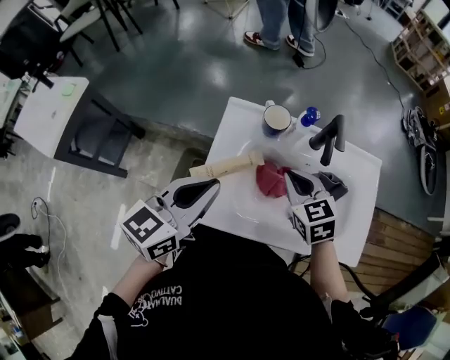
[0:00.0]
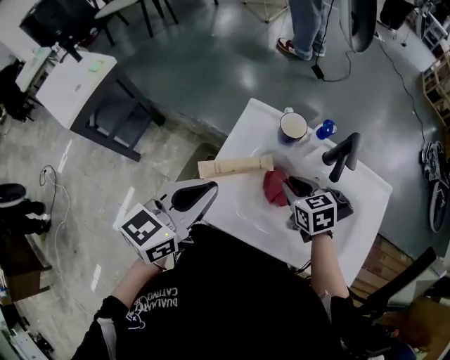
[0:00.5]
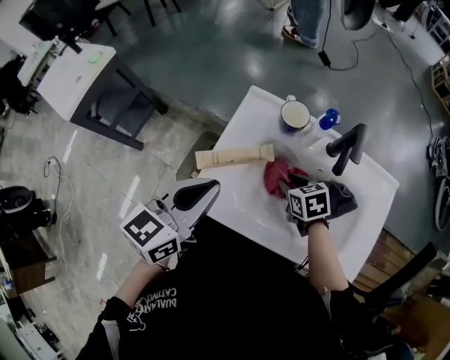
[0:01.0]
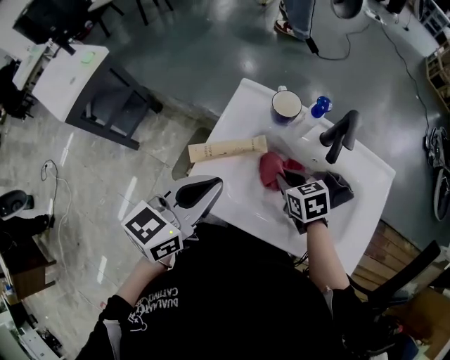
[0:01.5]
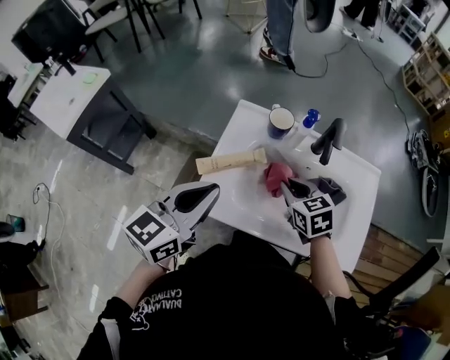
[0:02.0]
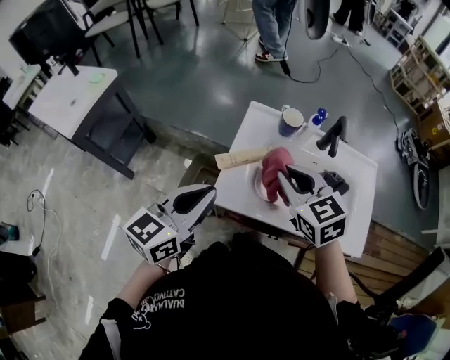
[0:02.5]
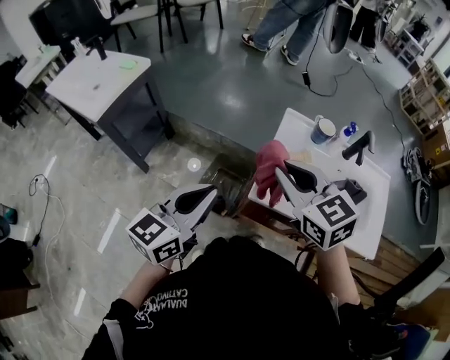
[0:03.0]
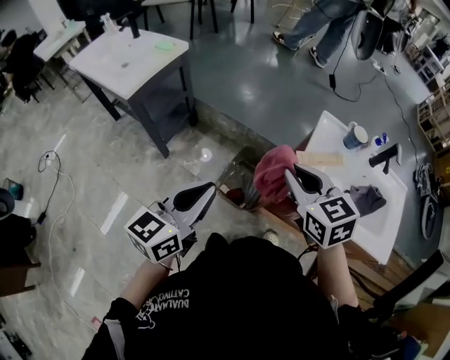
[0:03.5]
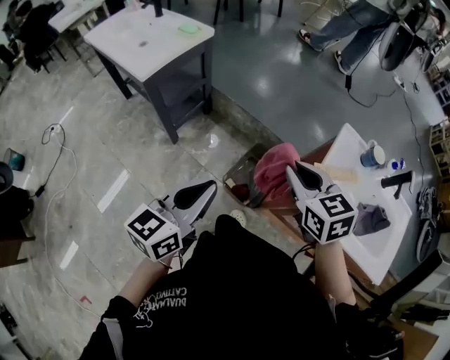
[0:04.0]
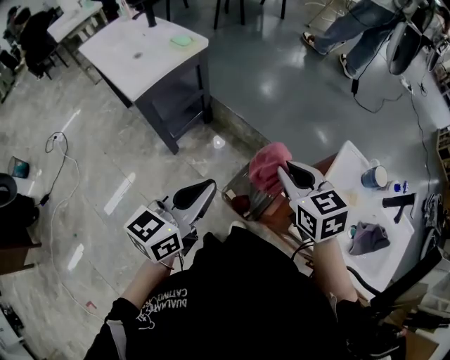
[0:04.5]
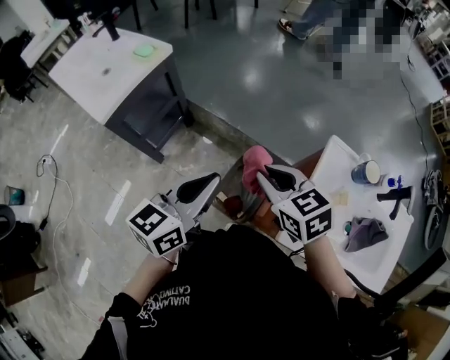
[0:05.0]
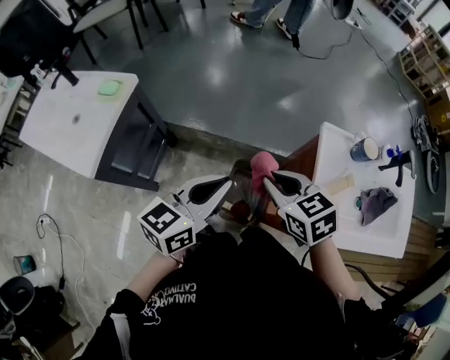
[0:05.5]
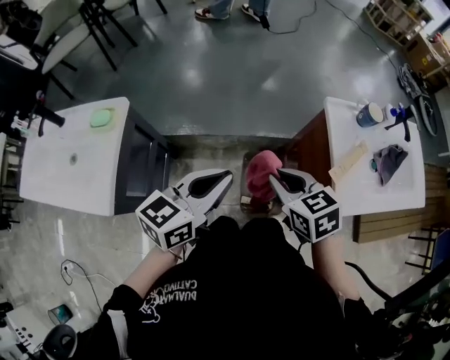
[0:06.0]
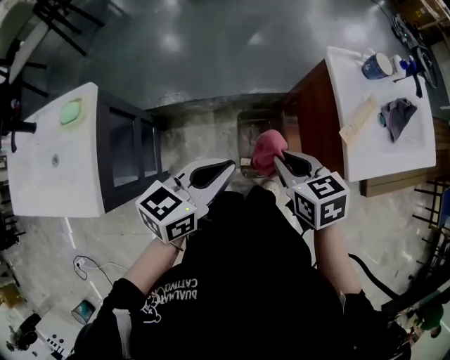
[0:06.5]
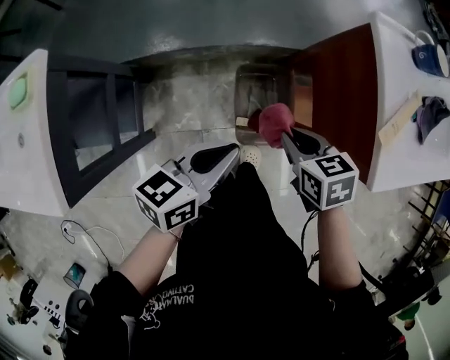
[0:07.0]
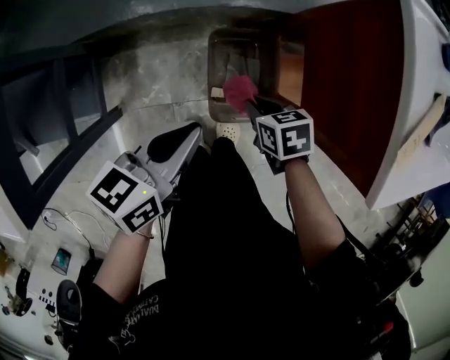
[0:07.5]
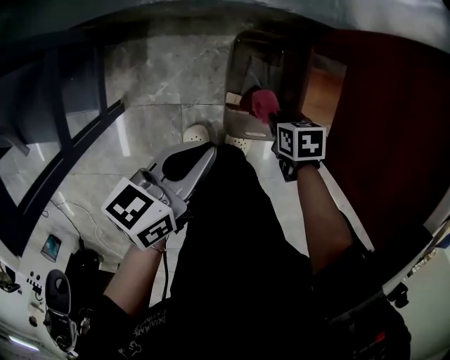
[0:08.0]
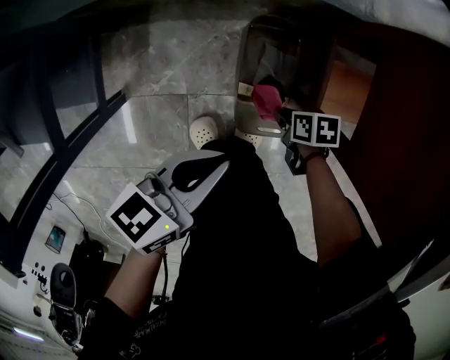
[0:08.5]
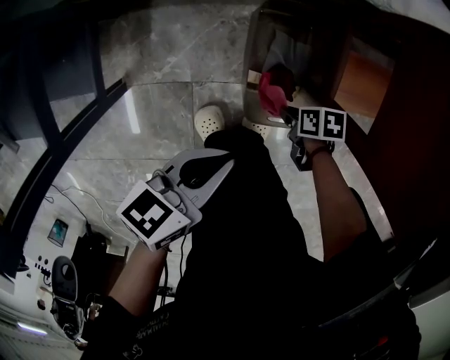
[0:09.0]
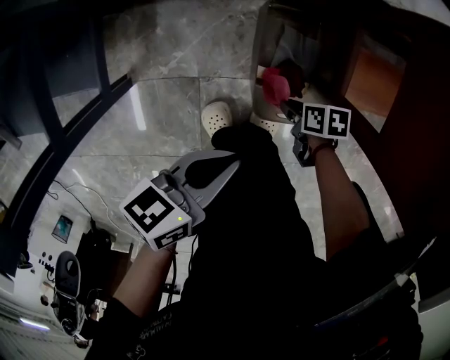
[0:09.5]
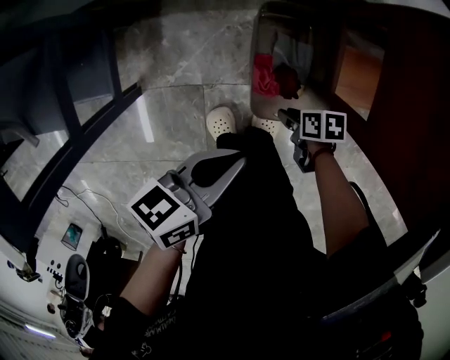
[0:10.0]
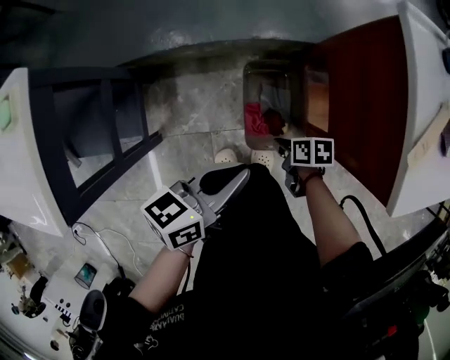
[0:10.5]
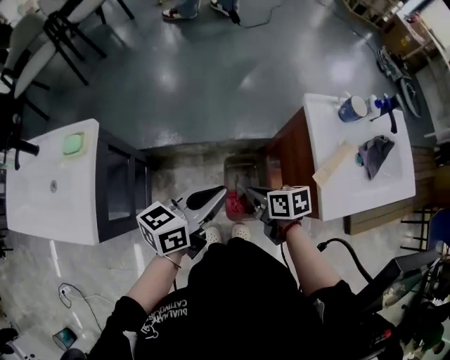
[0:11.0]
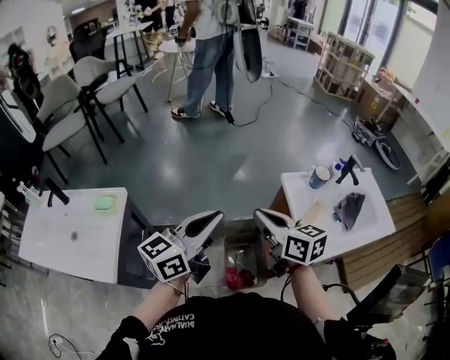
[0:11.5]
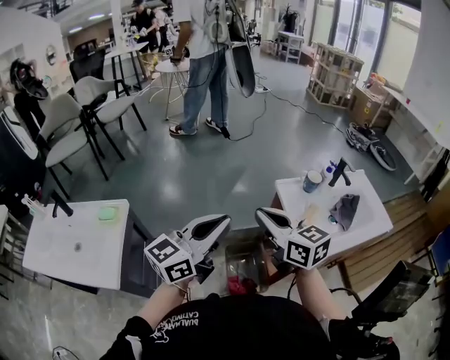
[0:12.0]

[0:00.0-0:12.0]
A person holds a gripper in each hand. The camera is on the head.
0:00.0 to 0:02.0: The left gripper goes about 5 cm backward, while the right gripper travels downward and back again, some 15 cm each way.
0:02.0 to 0:04.0: The grippers both shift to the left by approximately 40 cm. The left gripper turns by approximately 20 degrees.
0:04.0 to 0:06.0: The left gripper shifts by roughly 30 cm, and changes its angle by roughly 40 degrees. Meanwhile the right gripper moves roughly 20 cm, and changes its angle by roughly 30 degrees.
0:06.0 to 0:08.0: The two grippers go some 50 cm downward. The left gripper swivels some 30 degrees; the right gripper points its fingers roughly 30 degrees further downward.
0:08.0 to 0:10.0: The right gripper moves some 10 cm, and rotates some 20 degrees.
0:10.0 to 0:12.0: Both grippers move upward, approximately 70 cm. The left gripper angles its fingers upward, by roughly 40 degrees; the right gripper tilts its fingers about 50 degrees upward, and closes up.

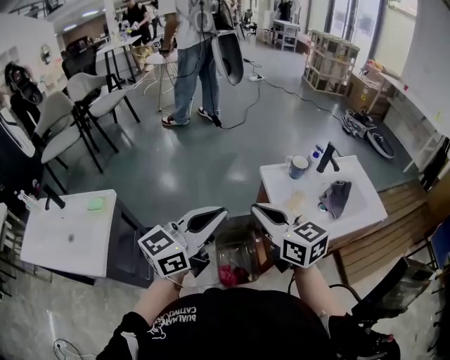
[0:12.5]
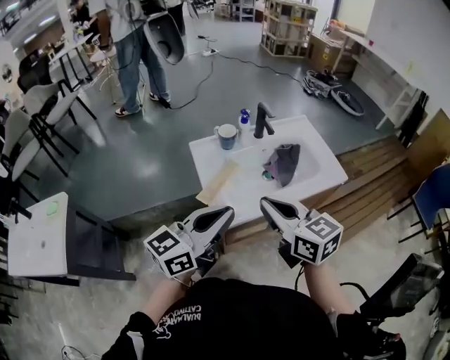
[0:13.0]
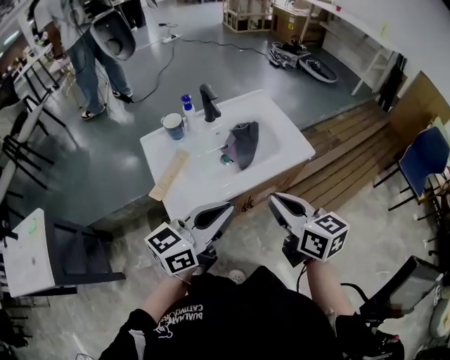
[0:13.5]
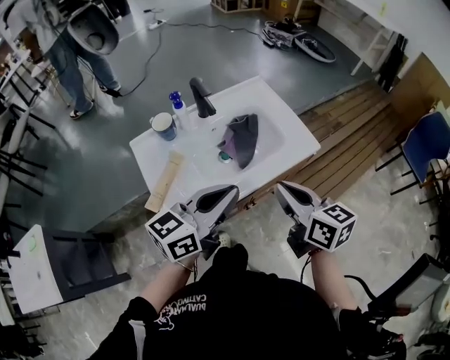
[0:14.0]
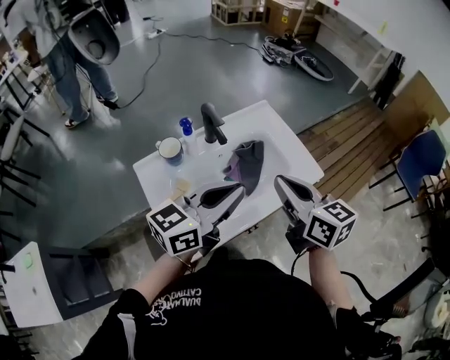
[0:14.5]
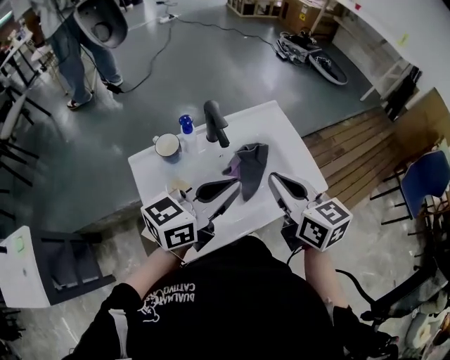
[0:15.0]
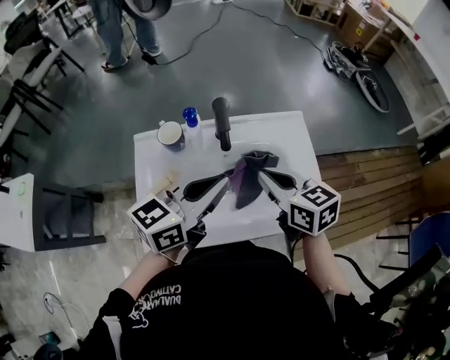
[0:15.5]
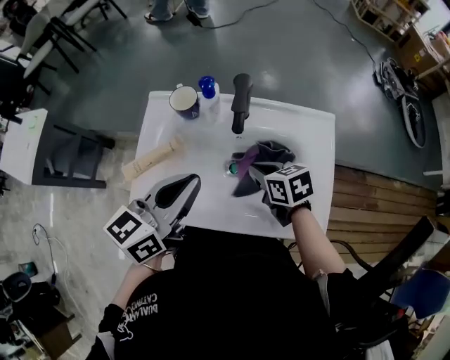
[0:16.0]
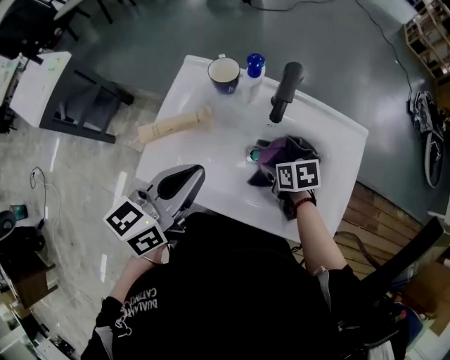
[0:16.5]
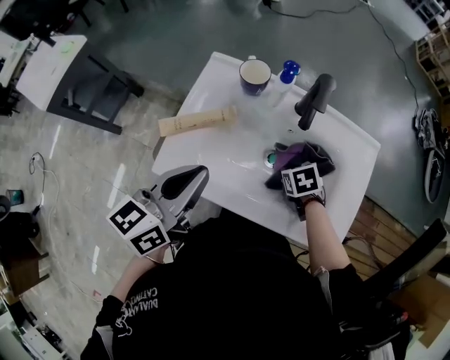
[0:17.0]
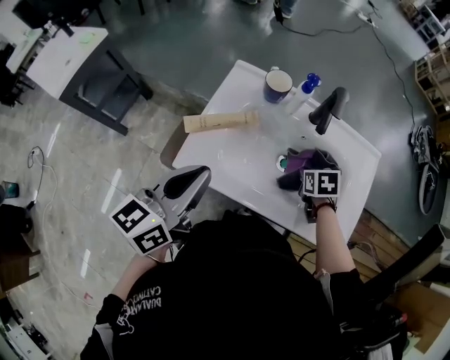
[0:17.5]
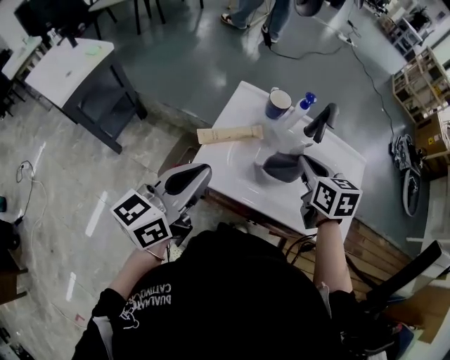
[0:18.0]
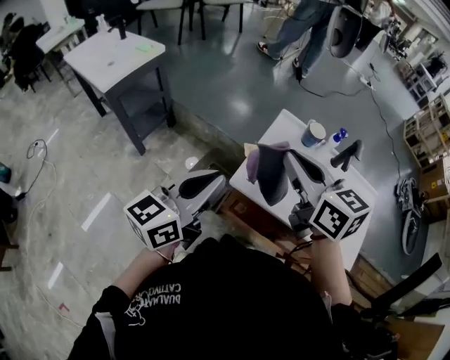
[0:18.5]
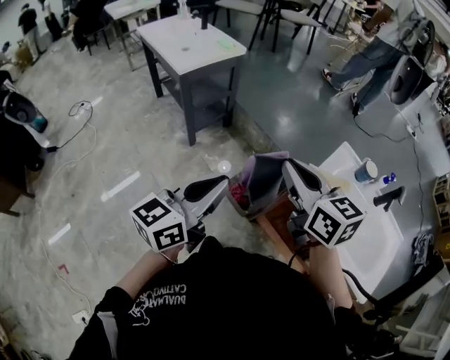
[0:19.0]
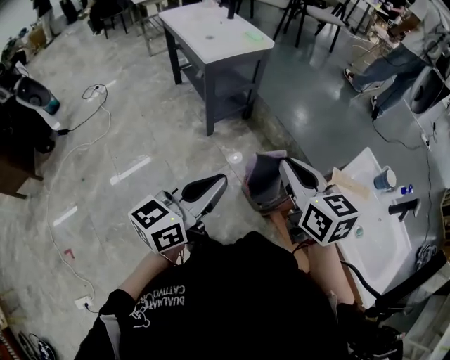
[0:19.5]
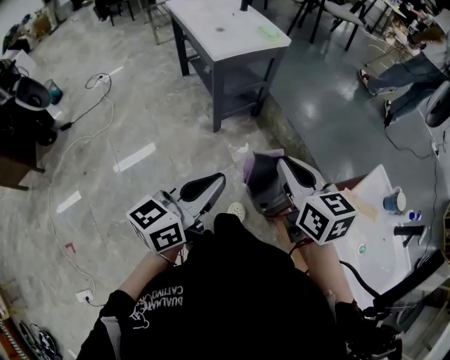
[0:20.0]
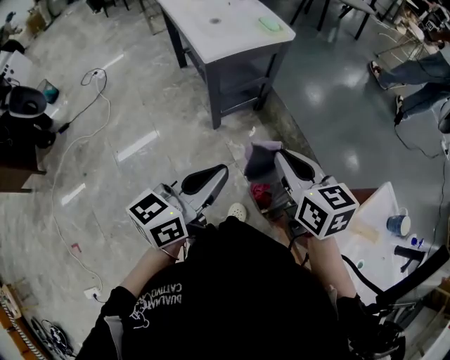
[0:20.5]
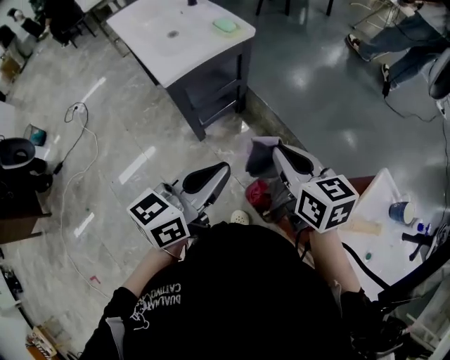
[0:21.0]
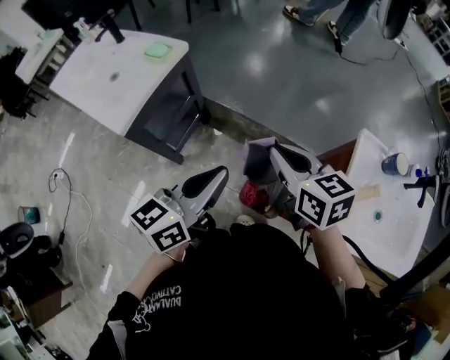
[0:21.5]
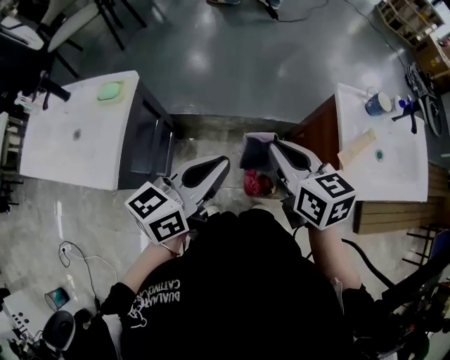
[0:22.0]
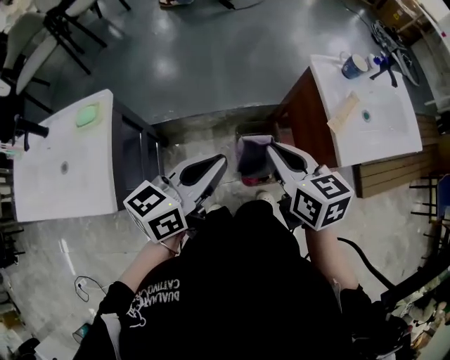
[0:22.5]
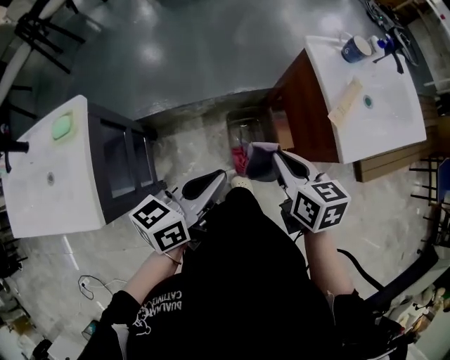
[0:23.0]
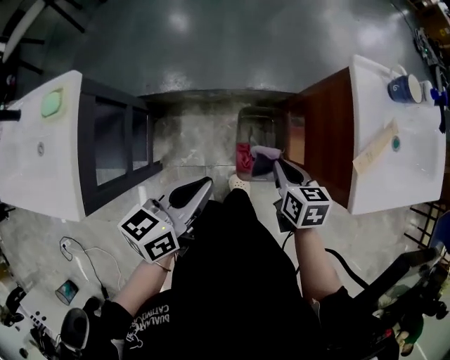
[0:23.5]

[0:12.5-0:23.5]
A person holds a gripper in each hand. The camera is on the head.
0:12.5 to 0:14.5: The two grippers travel together, about 50 cm. The right gripper changes its angle by roughly 30 degrees, while the left gripper changes its angle by about 30 degrees.
0:14.5 to 0:16.0: The right gripper is displaced downward by some 20 cm, and swivels about 60 degrees; the left gripper heads downward, covering roughly 5 cm, and swivels about 50 degrees.
0:16.0 to 0:18.0: The right gripper travels upward and to the left by approximately 15 cm, rotates about 20 degrees, and opens, then closes once more; the left gripper goes roughly 20 cm to the left and backward.
0:18.0 to 0:20.0: Both grippers are carried roughly 50 cm. The right gripper turns by about 40 degrees. Meanwhile the left gripper rotates about 30 degrees.
0:20.0 to 0:21.5: The right gripper changes place by approximately 25 cm, and changes its angle by some 30 degrees, while the left gripper changes place by approximately 30 cm, and changes its angle by roughly 30 degrees.
0:21.5 to 0:23.5: The right gripper goes approximately 25 cm downward, and changes its angle by about 50 degrees; the left gripper shifts approximately 20 cm downward, and rotates some 40 degrees.

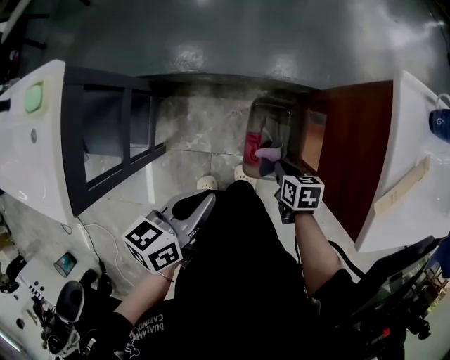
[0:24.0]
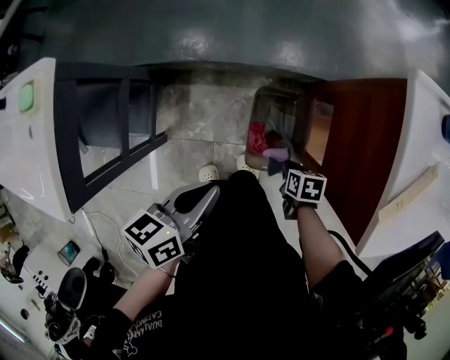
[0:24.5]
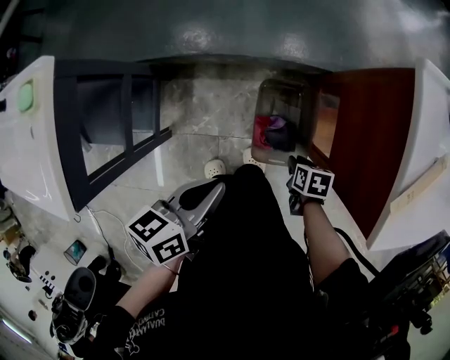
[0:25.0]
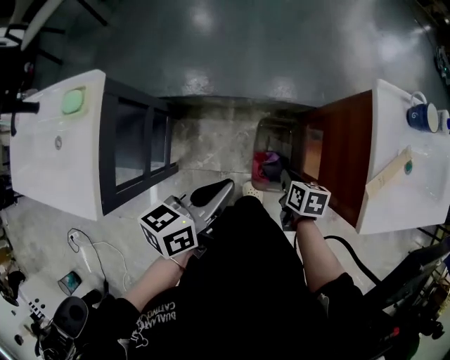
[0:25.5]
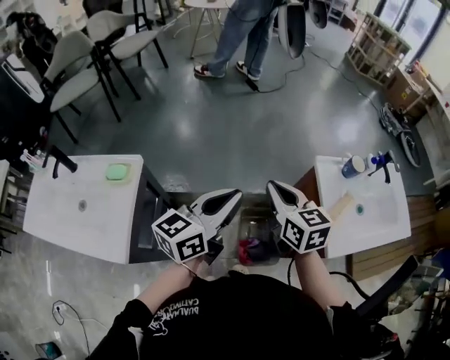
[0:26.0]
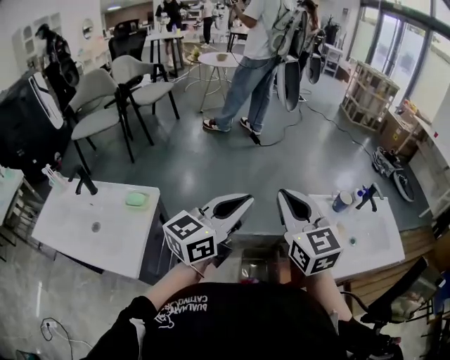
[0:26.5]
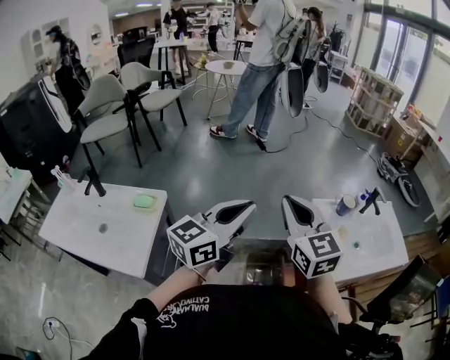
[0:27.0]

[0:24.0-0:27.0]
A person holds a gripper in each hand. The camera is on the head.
0:24.0 to 0:25.5: The two grippers go about 10 cm upward.
0:25.5 to 0:27.0: The left gripper shifts about 35 cm upward, and angles its fingers upward, by about 30 degrees, while the right gripper is displaced upward by roughly 60 cm, and tips its fingers upward by roughly 50 degrees.
